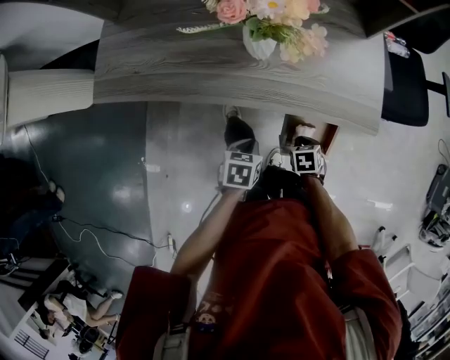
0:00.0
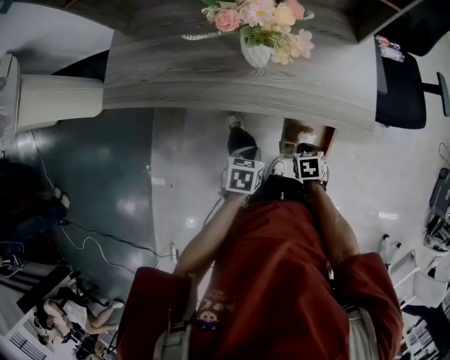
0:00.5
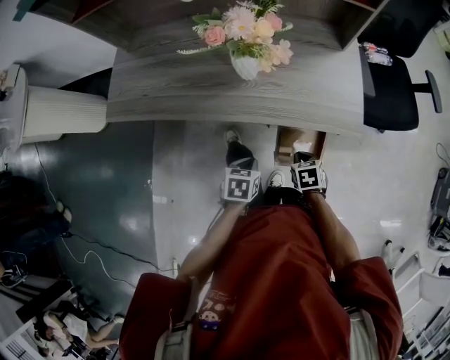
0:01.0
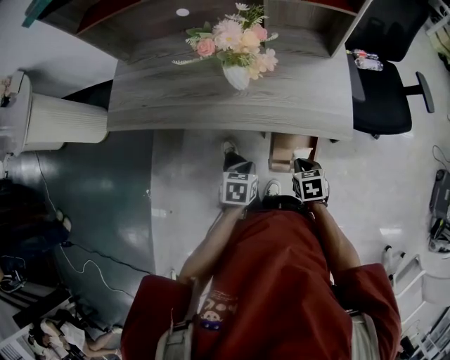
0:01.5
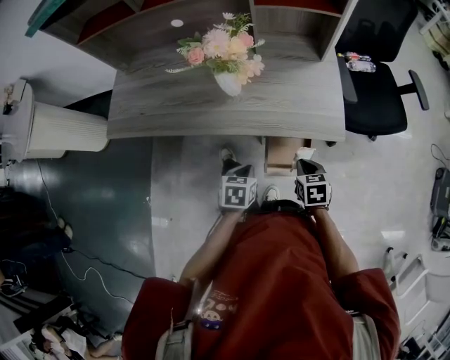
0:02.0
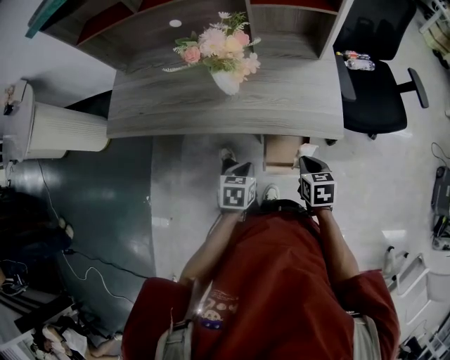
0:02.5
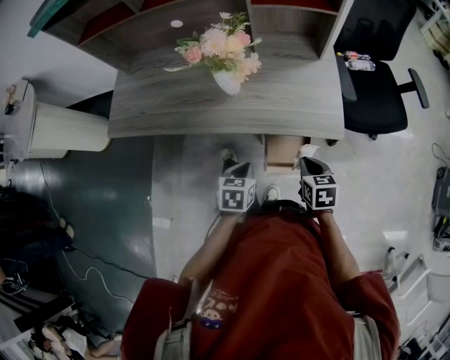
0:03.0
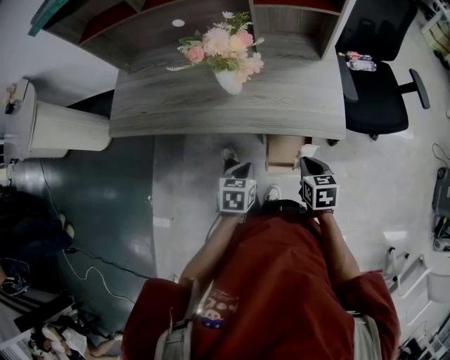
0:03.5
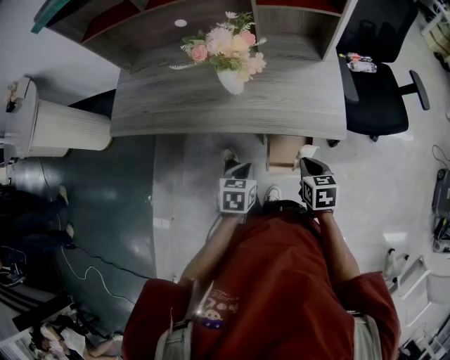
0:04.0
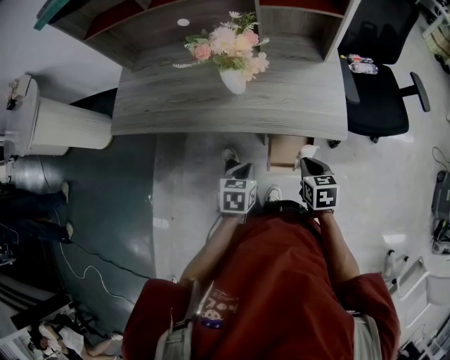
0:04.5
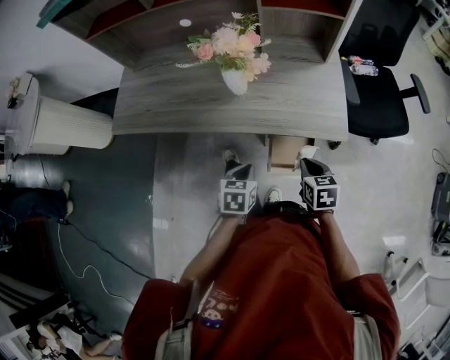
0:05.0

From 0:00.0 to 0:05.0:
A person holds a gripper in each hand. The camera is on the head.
From 0:00.0 to 0:02.5: The right gripper moves upward, roughly 20 cm, and turns by approximately 20 degrees. The left gripper heads upward and to the right, covering some 10 cm.
From 0:02.5 to 0:05.0: The grippers make only small movements.

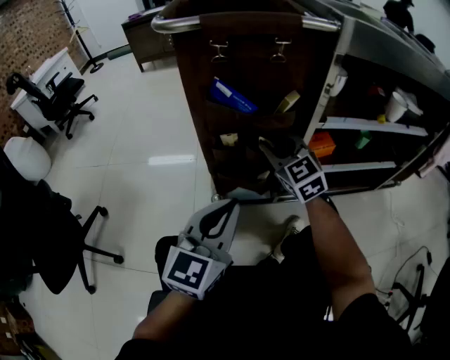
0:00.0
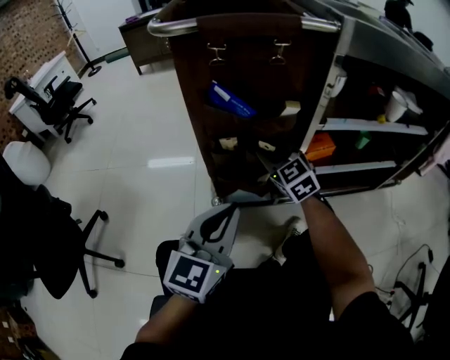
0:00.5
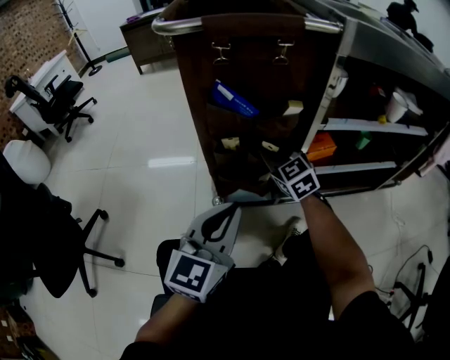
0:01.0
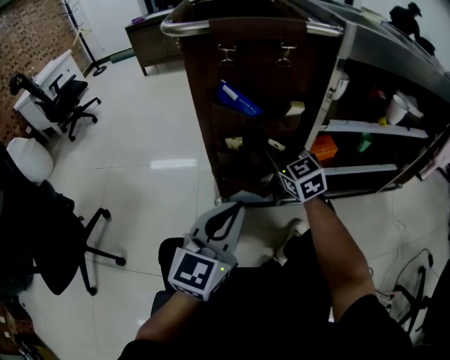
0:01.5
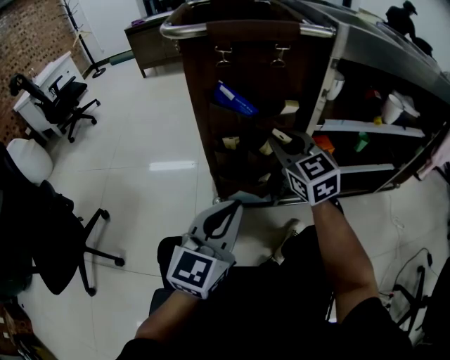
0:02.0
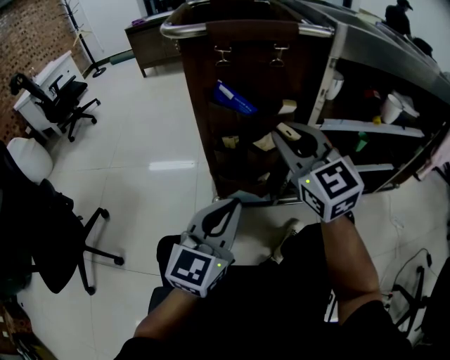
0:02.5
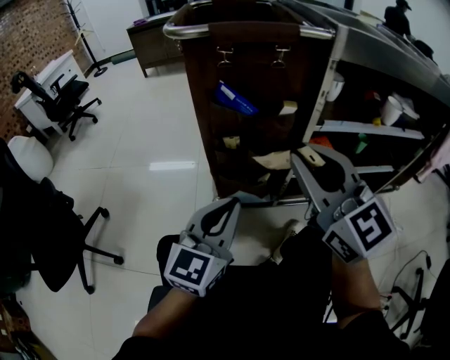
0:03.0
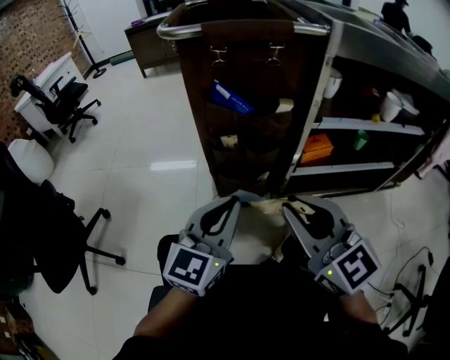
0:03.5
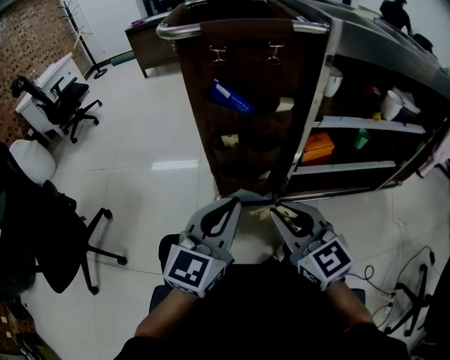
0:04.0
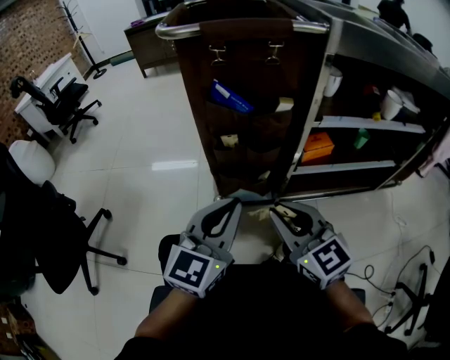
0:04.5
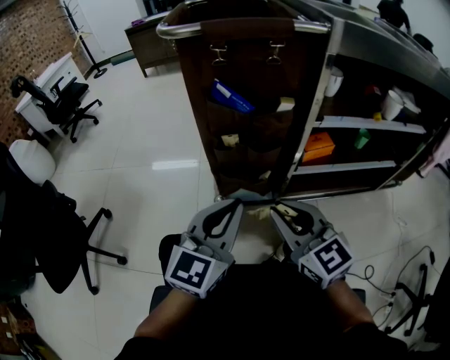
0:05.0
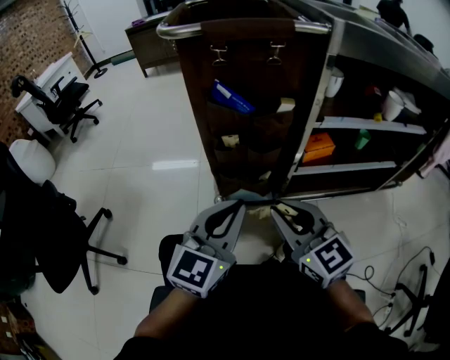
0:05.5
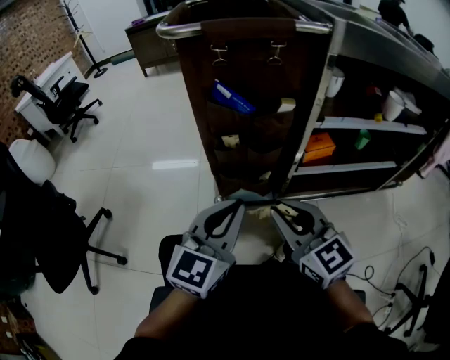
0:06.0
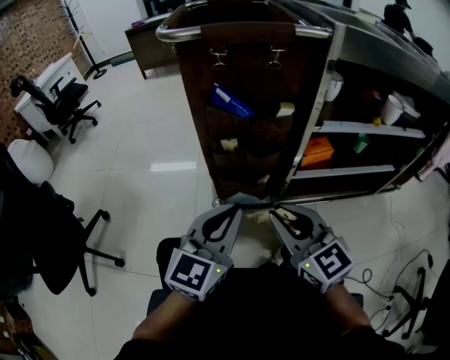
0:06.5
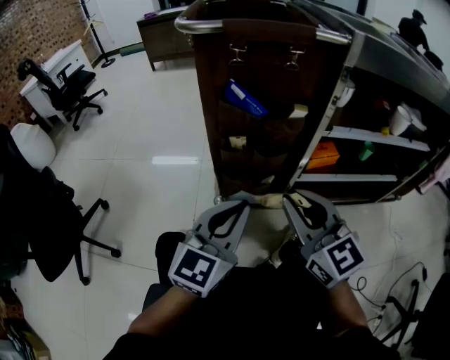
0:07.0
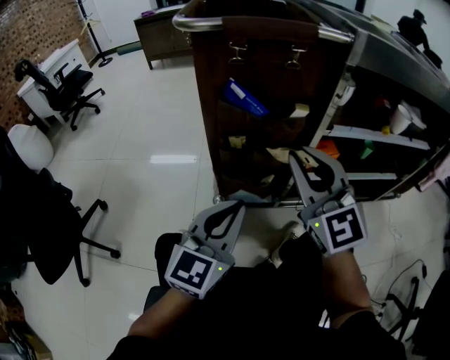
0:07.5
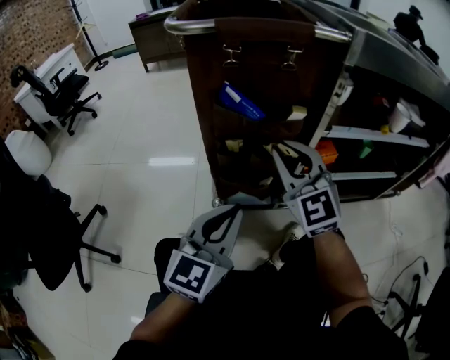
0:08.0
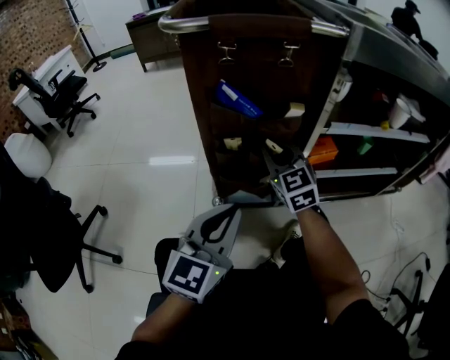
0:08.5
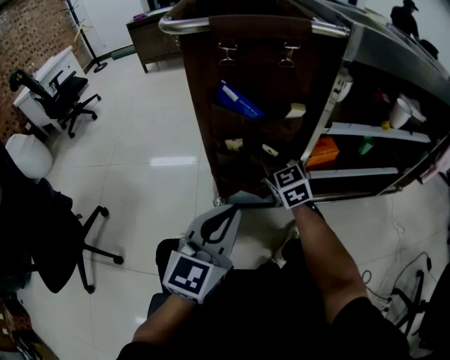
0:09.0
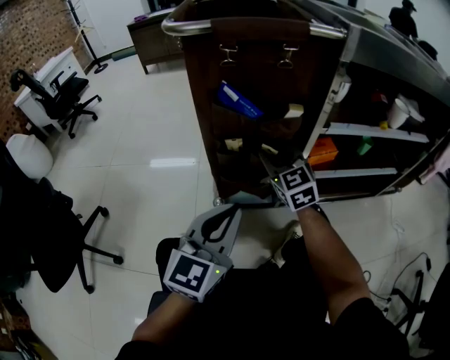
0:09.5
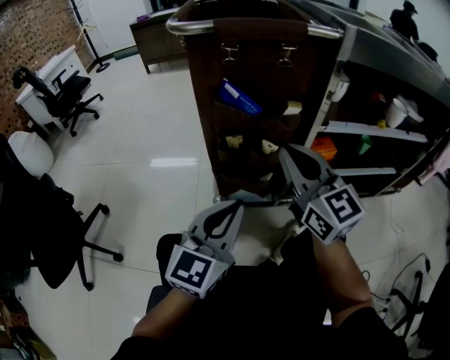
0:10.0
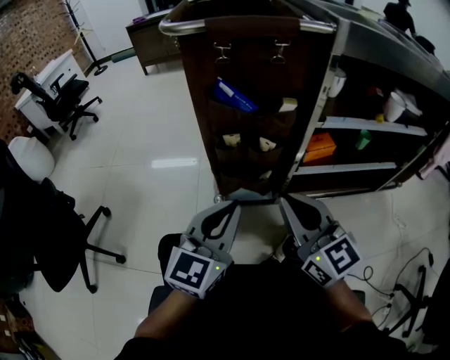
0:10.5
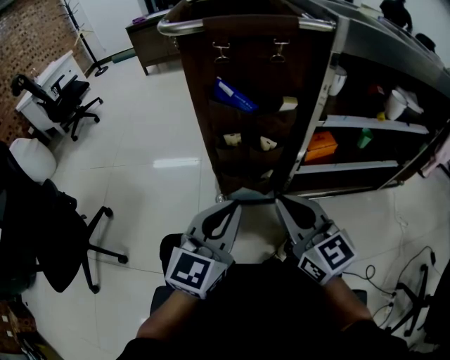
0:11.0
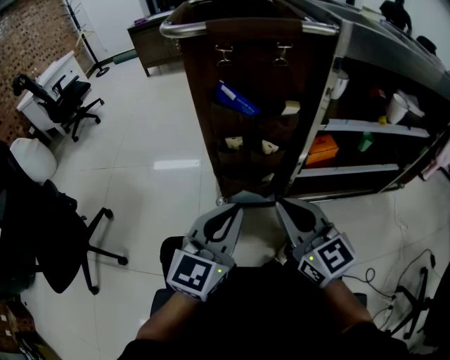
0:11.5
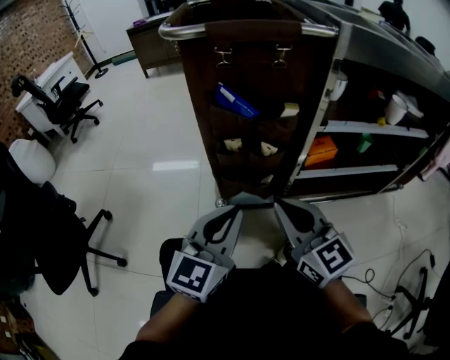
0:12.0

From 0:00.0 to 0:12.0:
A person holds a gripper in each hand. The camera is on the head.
From 0:00.0 to 0:02.0: The right gripper shifts about 5 cm upward.
From 0:02.0 to 0:04.0: The right gripper shifts approximately 20 cm backward.
From 0:04.0 to 0:06.0: Both grippers stay put.
From 0:06.0 to 0:08.0: The right gripper heads forward, covering some 15 cm, and swivels approximately 30 degrees.
From 0:08.0 to 0:10.0: The right gripper travels downward and back again, some 15 cm each way, rotates about 30 degrees, and opens and closes again.
From 0:10.0 to 0:12.0: The right gripper heads backward and downward, covering some 10 cm.

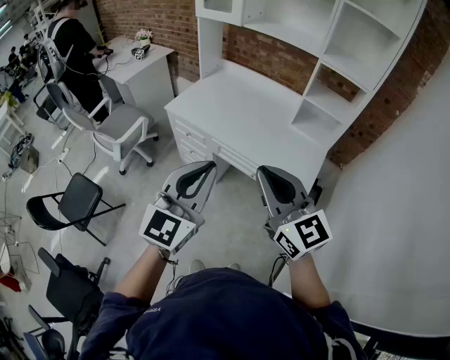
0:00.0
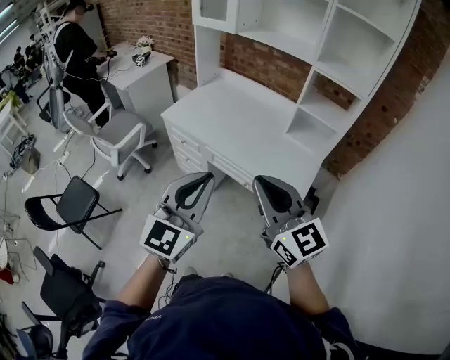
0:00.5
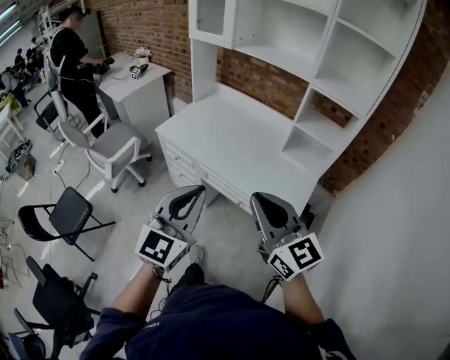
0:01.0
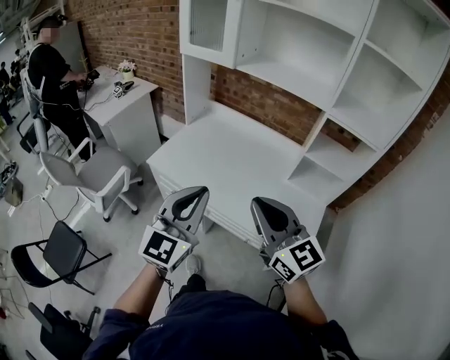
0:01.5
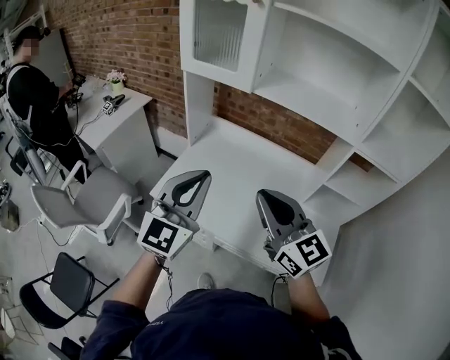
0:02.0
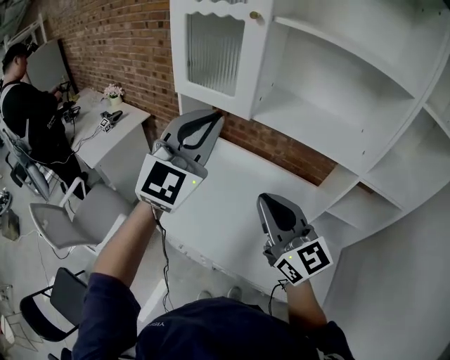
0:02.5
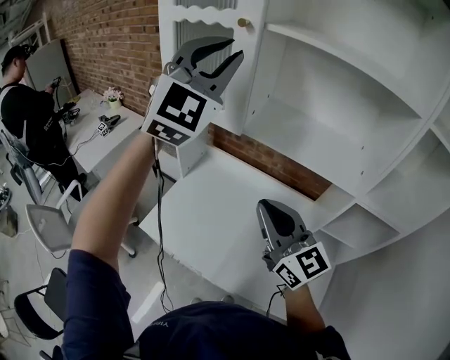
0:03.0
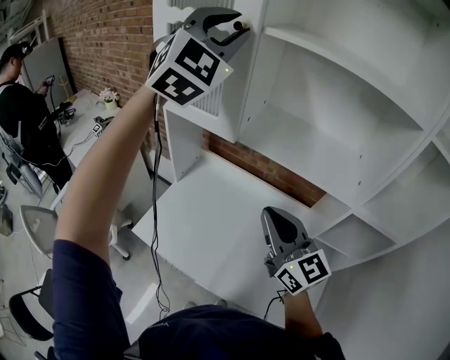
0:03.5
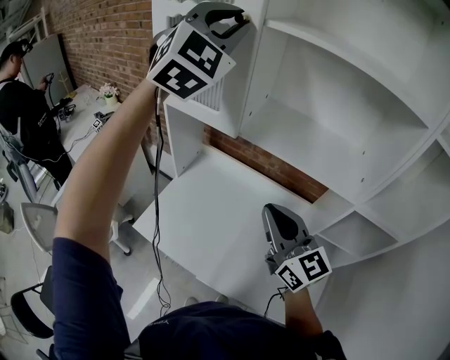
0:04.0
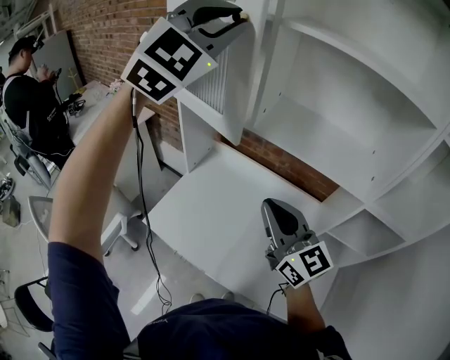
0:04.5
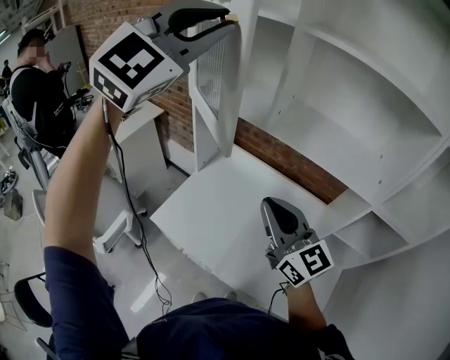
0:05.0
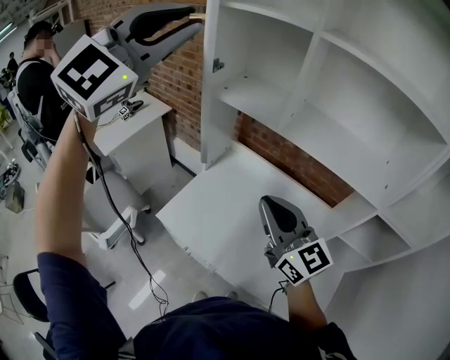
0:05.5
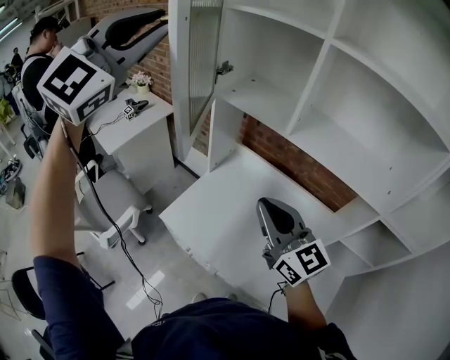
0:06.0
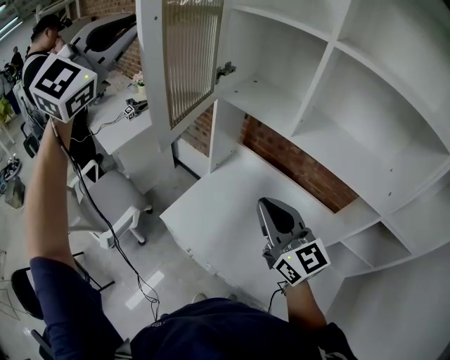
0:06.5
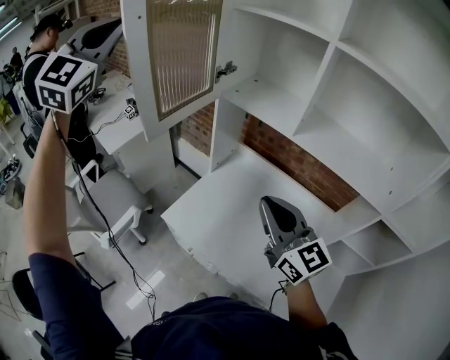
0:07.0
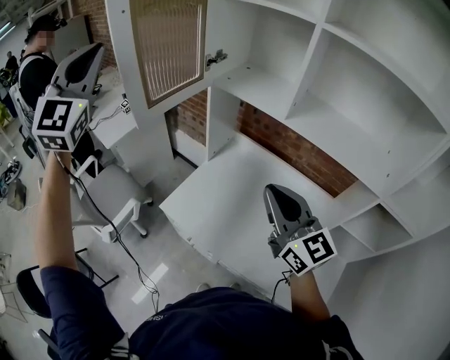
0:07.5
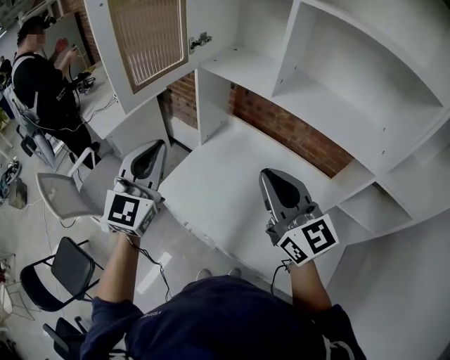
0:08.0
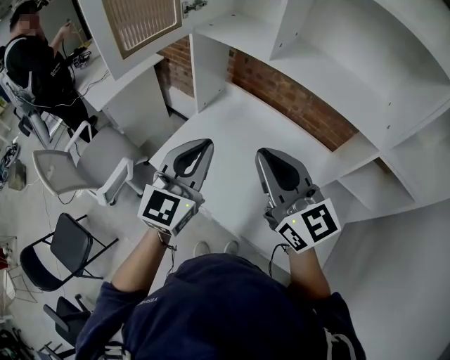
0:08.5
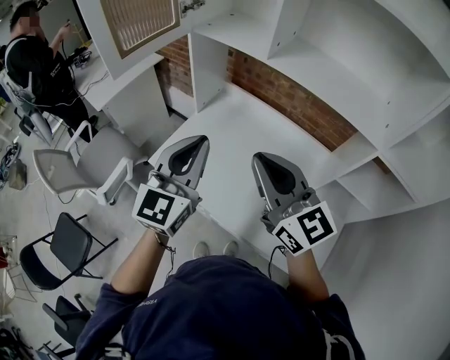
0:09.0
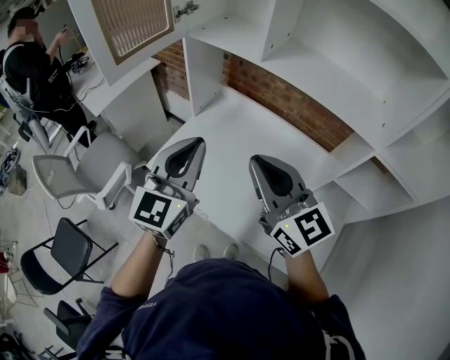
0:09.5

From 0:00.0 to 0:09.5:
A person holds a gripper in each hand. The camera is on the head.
From 0:00.0 to 0:02.0: The two grippers travel together, forward, approximately 40 cm.
From 0:02.0 to 0:04.0: The right gripper travels forward and to the right by approximately 20 cm; the left gripper heads forward and upward, covering some 40 cm, and rolls clockwise, seen from behind, by about 40 degrees.
From 0:04.0 to 0:05.5: The left gripper shifts about 20 cm to the left and backward. Meanwhile the right gripper moves to the left, about 10 cm.
From 0:05.5 to 0:07.5: The left gripper travels to the left by about 20 cm, and changes its angle by about 30 degrees.
From 0:07.5 to 0:09.5: The right gripper heads backward, covering roughly 5 cm. The left gripper shifts some 40 cm to the right, downward and backward, and rotates around the line of its fingers by about 40 degrees, counterclockwise from behind.
